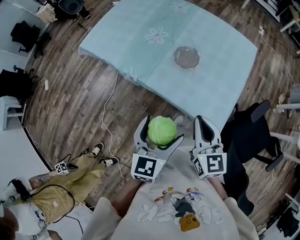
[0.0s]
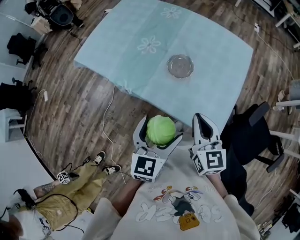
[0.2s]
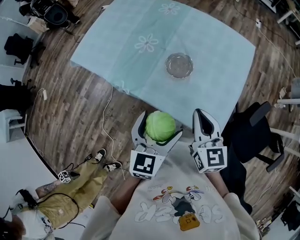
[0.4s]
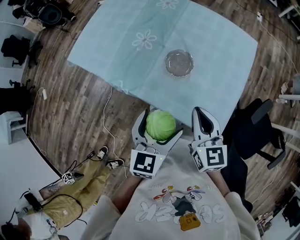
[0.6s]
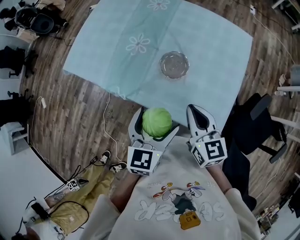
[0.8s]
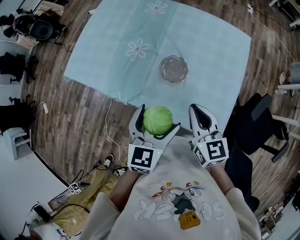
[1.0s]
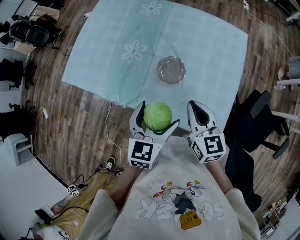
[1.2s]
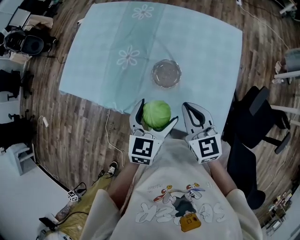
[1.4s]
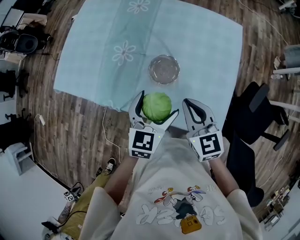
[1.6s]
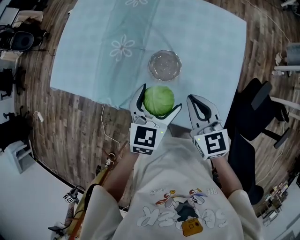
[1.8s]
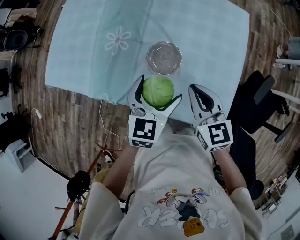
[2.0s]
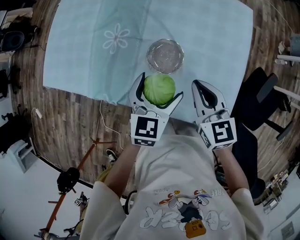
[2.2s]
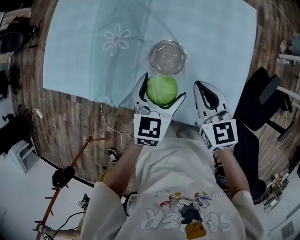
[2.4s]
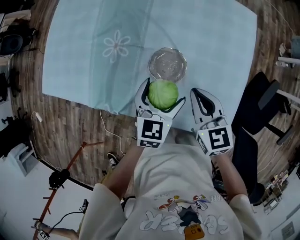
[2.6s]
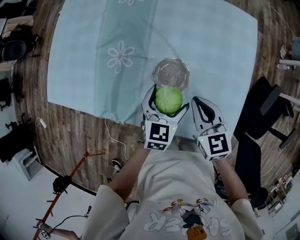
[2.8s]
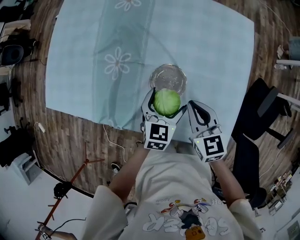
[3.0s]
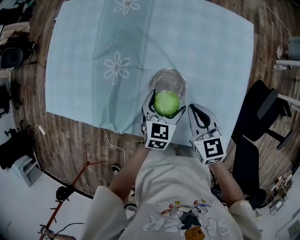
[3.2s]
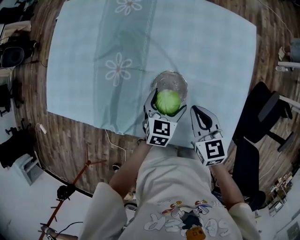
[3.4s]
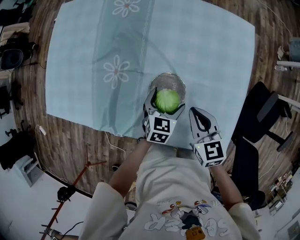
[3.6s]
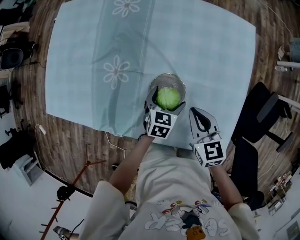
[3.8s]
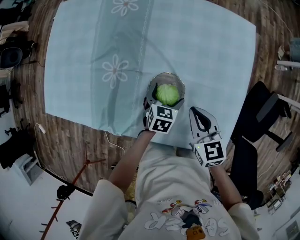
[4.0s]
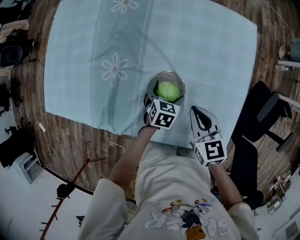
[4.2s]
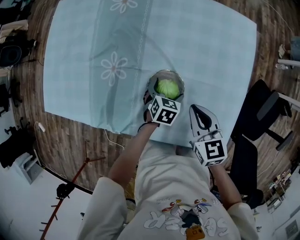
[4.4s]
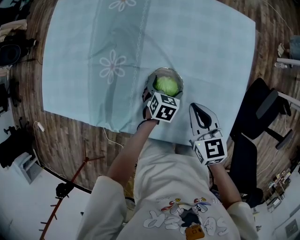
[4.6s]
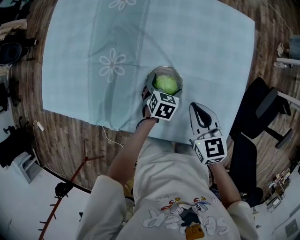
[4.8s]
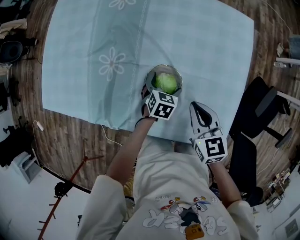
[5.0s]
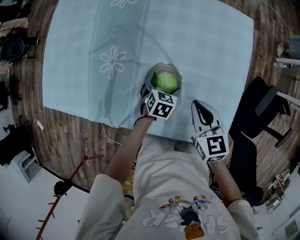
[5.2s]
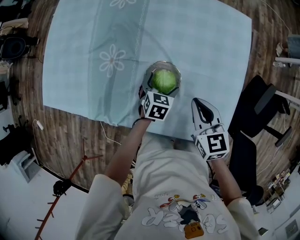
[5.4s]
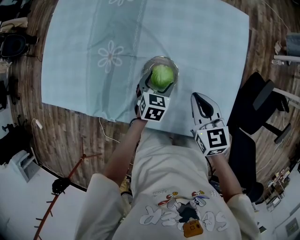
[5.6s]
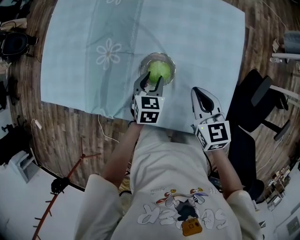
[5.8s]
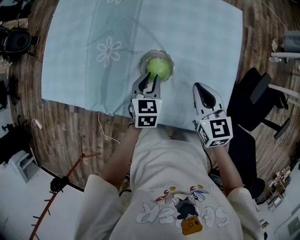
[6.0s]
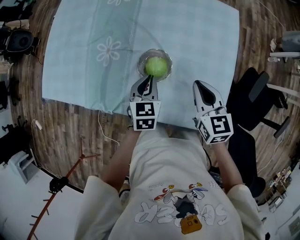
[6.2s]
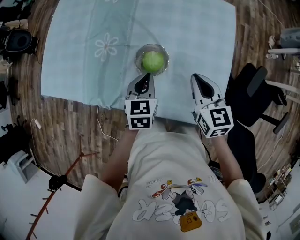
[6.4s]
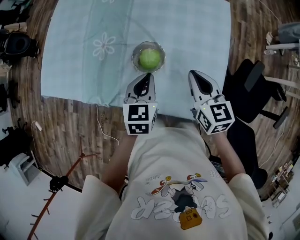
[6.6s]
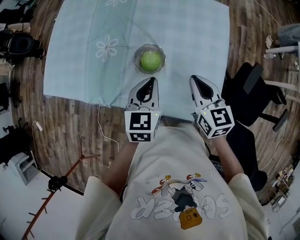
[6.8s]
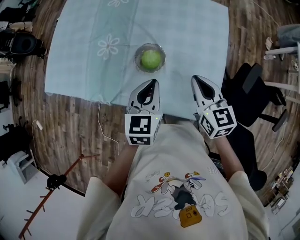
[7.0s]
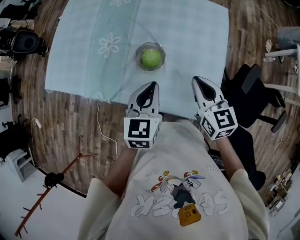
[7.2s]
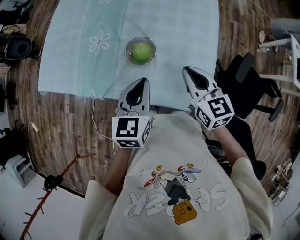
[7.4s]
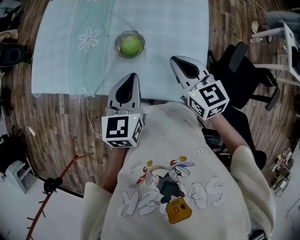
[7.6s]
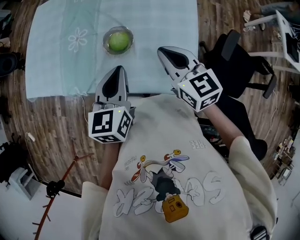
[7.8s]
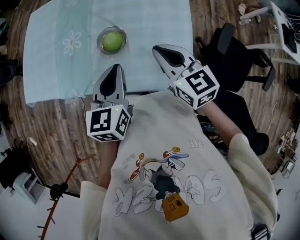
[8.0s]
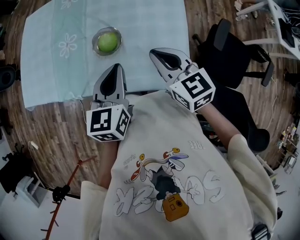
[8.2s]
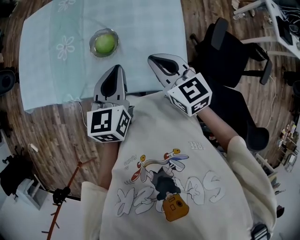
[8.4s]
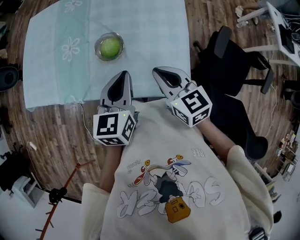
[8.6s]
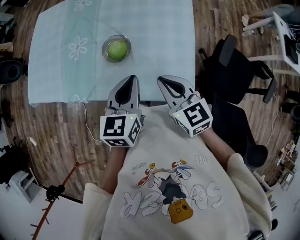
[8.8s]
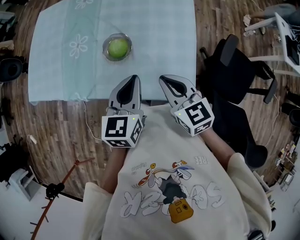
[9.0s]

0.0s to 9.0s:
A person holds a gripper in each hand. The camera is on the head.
0.0s to 1.6s: The two grippers go some 20 cm forward.
1.6s to 3.0s: Both grippers travel together downward and forward, about 15 cm.
3.0s to 4.4s: The left gripper heads downward and forward, covering some 15 cm, and changes its angle by about 20 degrees.
4.4s to 6.0s: The left gripper moves upward, roughly 15 cm, rotates some 20 degrees, and closes up. Meanwhile the right gripper shifts by approximately 5 cm.
6.0s to 7.6s: The left gripper goes about 25 cm upward and backward. Meanwhile the right gripper travels upward and backward by approximately 10 cm.
7.6s to 9.0s: The right gripper shifts about 5 cm backward; the left gripper shifts some 5 cm to the right.

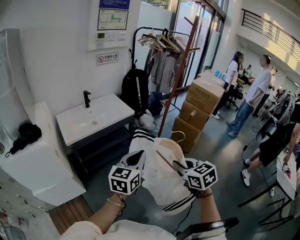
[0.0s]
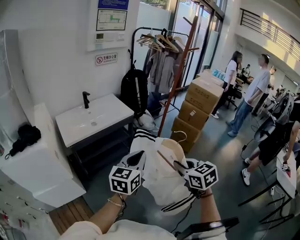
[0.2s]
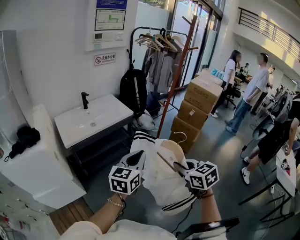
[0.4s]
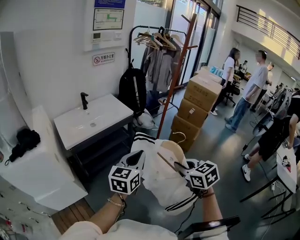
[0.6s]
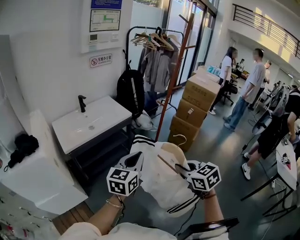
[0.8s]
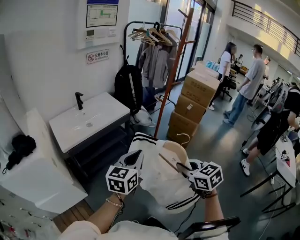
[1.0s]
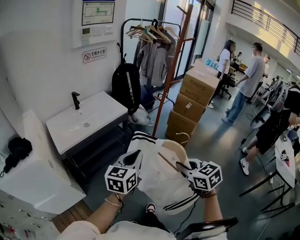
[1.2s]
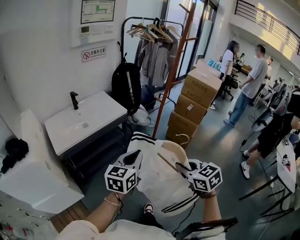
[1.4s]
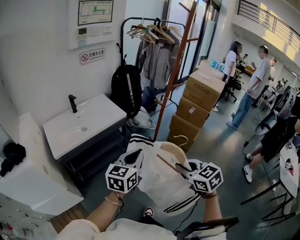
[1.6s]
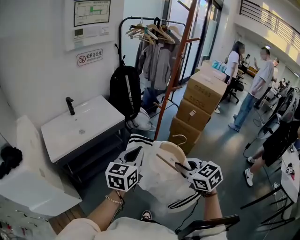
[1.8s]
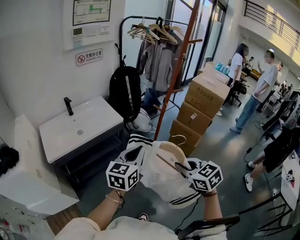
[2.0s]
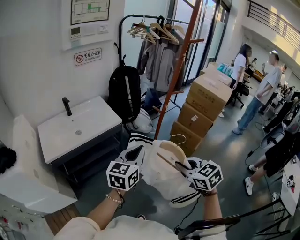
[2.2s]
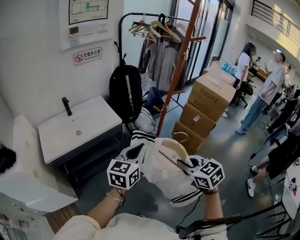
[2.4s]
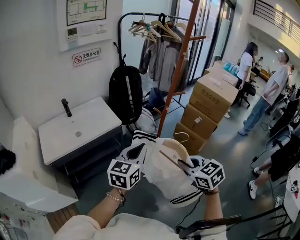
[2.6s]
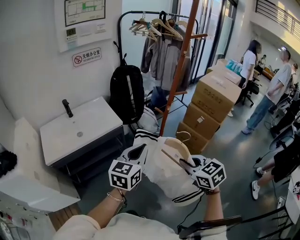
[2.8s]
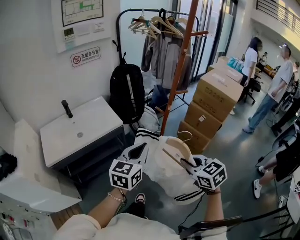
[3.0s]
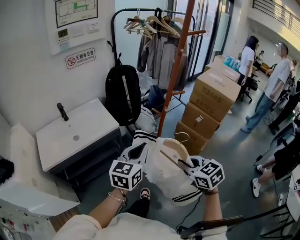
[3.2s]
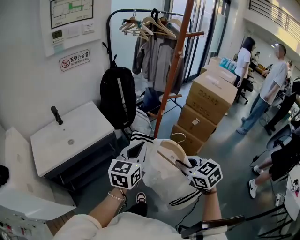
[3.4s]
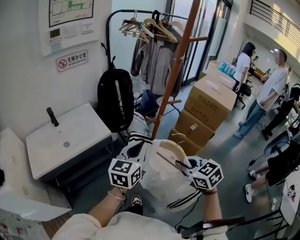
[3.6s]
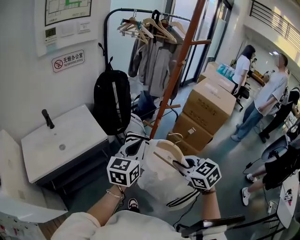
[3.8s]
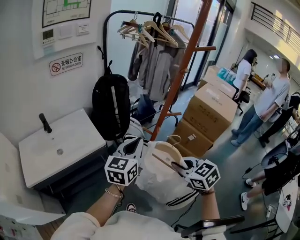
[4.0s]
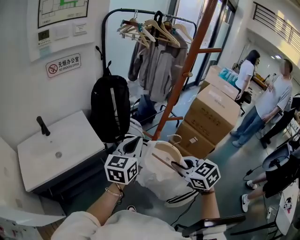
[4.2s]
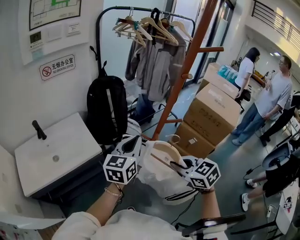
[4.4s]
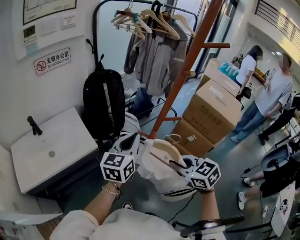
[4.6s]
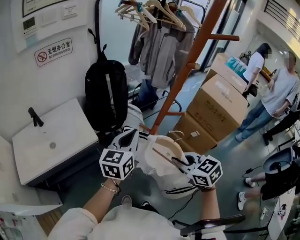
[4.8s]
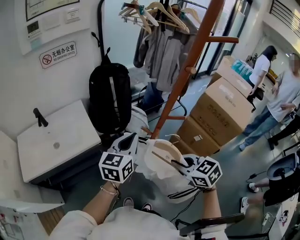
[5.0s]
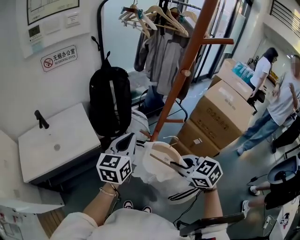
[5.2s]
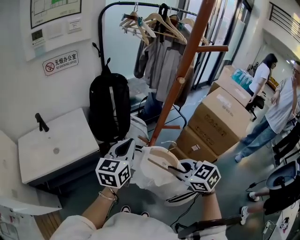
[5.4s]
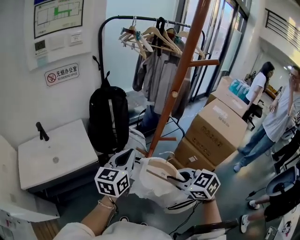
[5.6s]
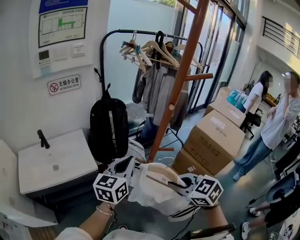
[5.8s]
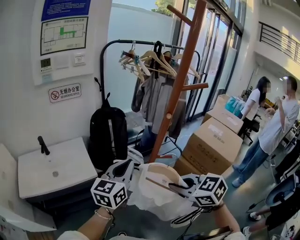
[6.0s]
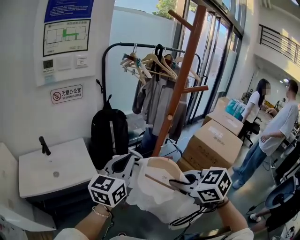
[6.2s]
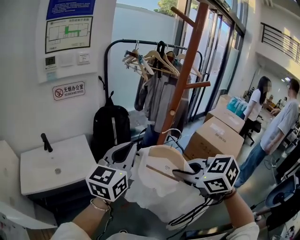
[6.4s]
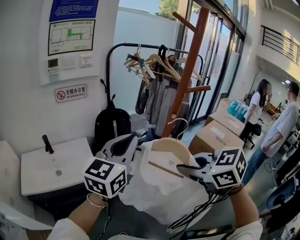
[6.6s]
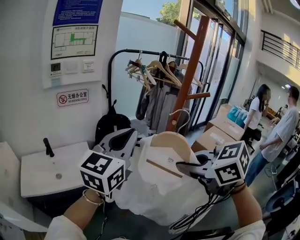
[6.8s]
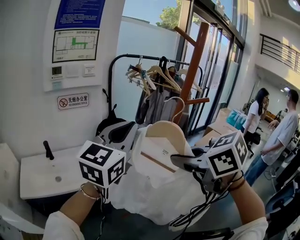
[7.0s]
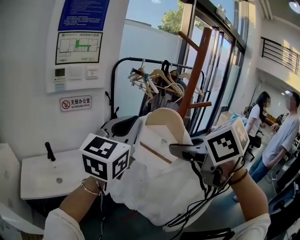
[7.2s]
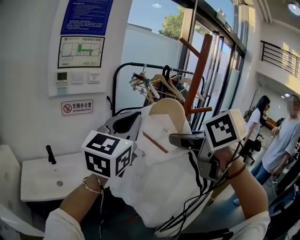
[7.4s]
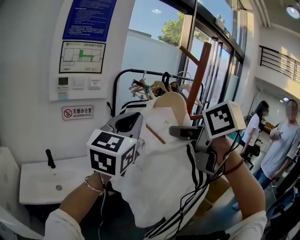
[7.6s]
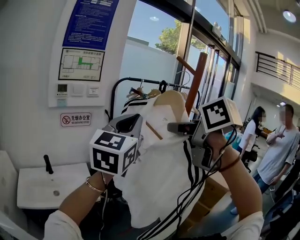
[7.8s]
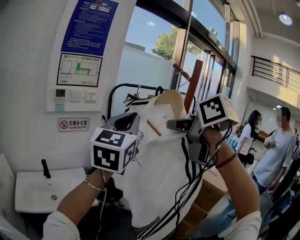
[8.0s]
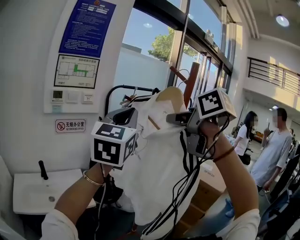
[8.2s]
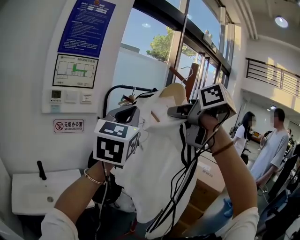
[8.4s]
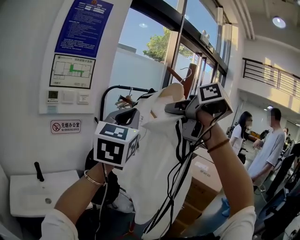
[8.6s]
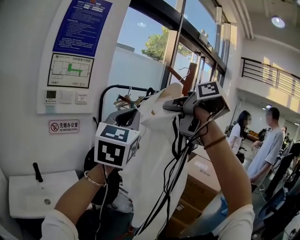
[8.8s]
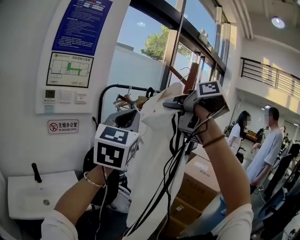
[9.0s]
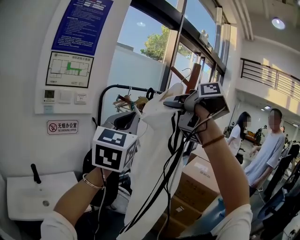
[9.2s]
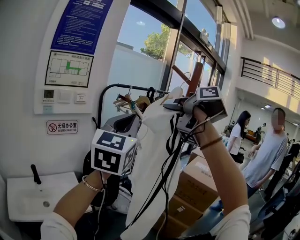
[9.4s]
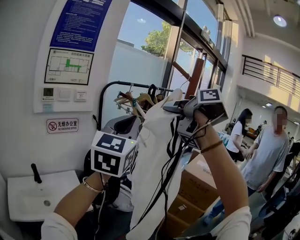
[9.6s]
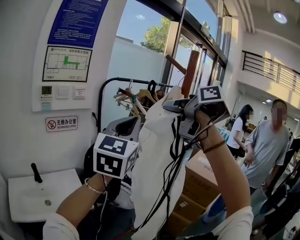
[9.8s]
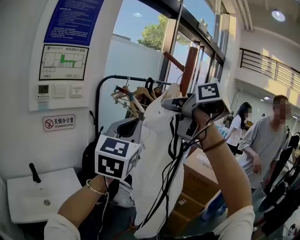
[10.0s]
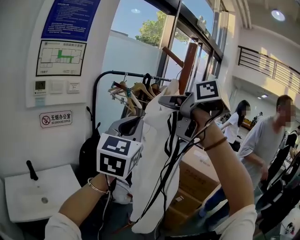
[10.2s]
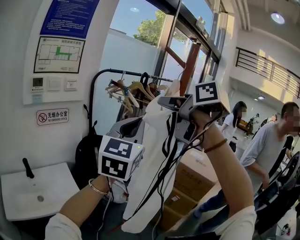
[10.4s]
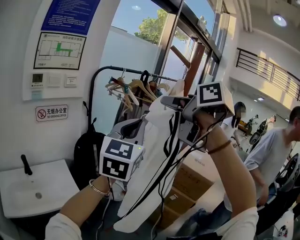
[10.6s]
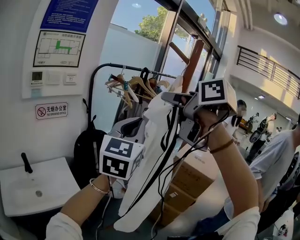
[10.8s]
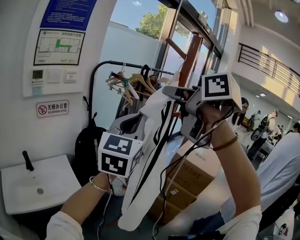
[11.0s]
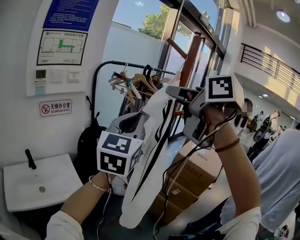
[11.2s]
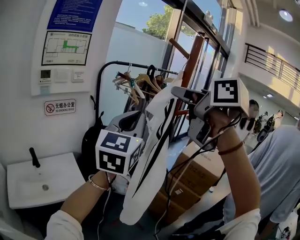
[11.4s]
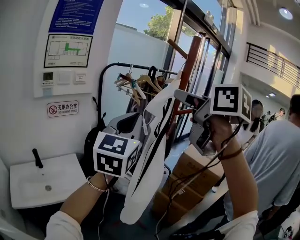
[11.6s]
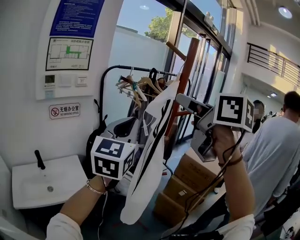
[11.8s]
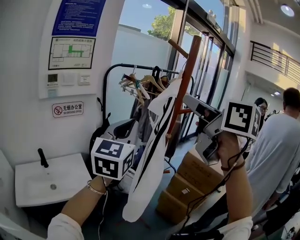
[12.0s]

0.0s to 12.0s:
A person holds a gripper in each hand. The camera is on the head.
0.0s to 1.6s: Both grippers travel together forward, roughly 10 cm.
1.6s to 3.0s: Both grippers move forward and to the right, roughly 25 cm.
3.0s to 4.4s: The grippers both shift forward by roughly 25 cm.
4.4s to 6.0s: The two grippers go approximately 10 cm upward.
6.0s to 7.6s: The two grippers go approximately 30 cm upward. The right gripper swivels about 30 degrees, while the left gripper swivels roughly 30 degrees.
7.6s to 9.0s: The right gripper goes approximately 15 cm upward and forward, and rotates about 30 degrees. Meanwhile the left gripper changes place by roughly 5 cm.
9.0s to 10.4s: The left gripper goes about 5 cm downward; the right gripper opens up.
10.4s to 12.0s: The left gripper moves some 5 cm, while the right gripper heads backward and to the right, covering about 10 cm, and rotates approximately 20 degrees.

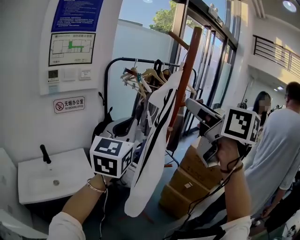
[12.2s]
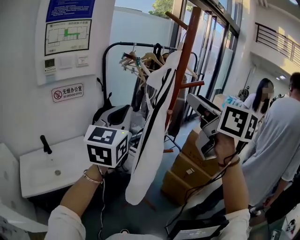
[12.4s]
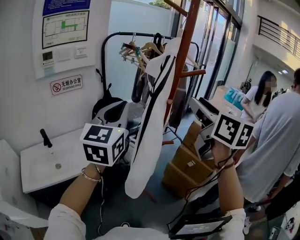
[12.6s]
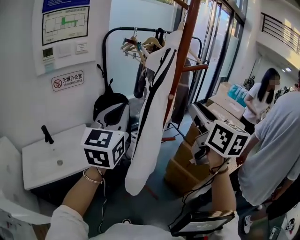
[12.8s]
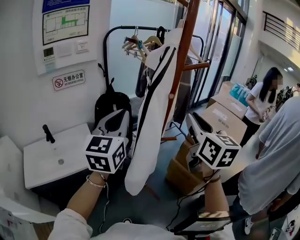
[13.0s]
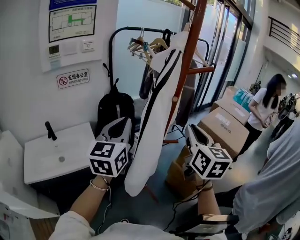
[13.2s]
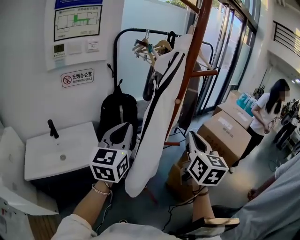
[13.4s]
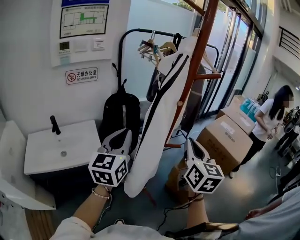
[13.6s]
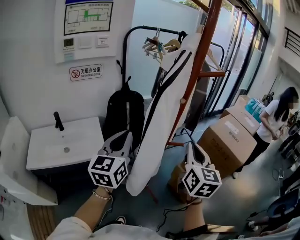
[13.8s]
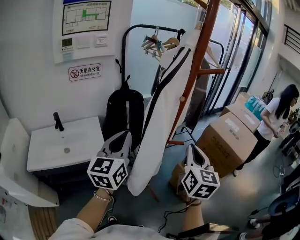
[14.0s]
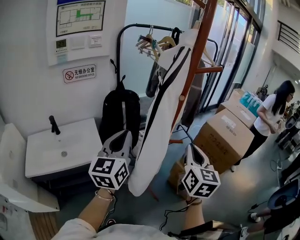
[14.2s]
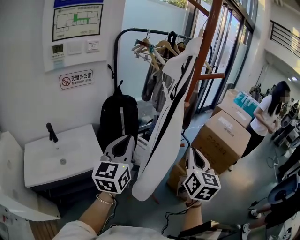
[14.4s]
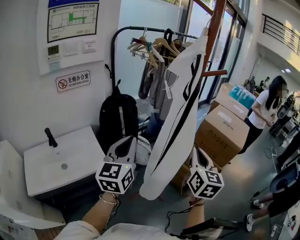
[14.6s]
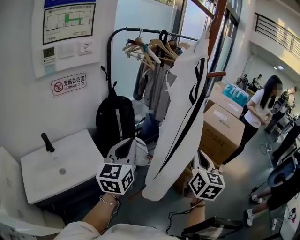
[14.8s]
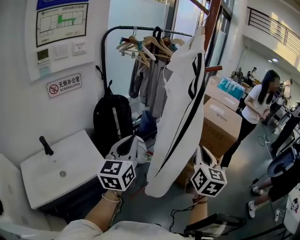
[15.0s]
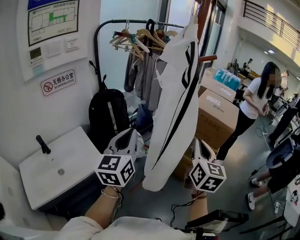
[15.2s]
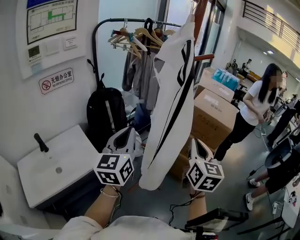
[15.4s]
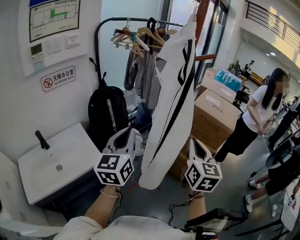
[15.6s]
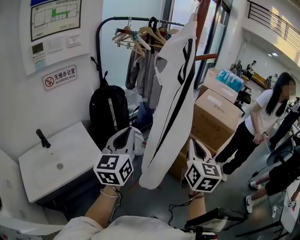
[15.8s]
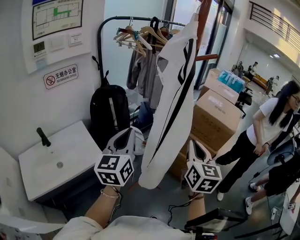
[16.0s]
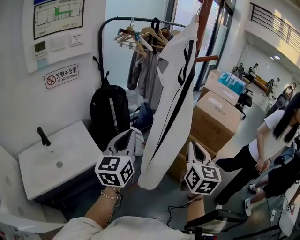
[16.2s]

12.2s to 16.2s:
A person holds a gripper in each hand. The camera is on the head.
12.2s to 13.6s: The right gripper heads downward, covering some 25 cm, and closes its fingers. The left gripper moves downward, some 15 cm.
13.6s to 14.8s: The left gripper moves approximately 5 cm. Meanwhile the right gripper shifts by approximately 5 cm.
14.8s to 16.2s: The grippers make only small movements.
